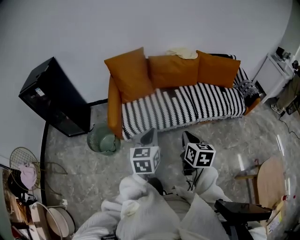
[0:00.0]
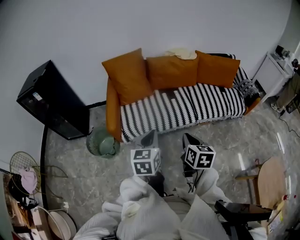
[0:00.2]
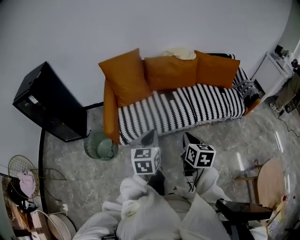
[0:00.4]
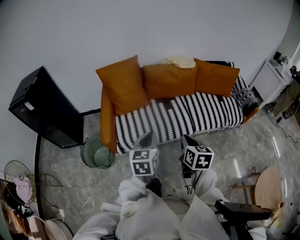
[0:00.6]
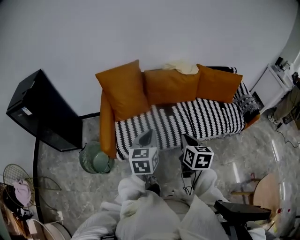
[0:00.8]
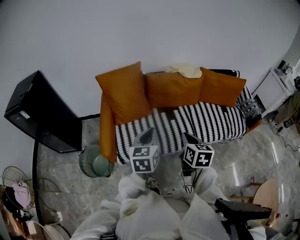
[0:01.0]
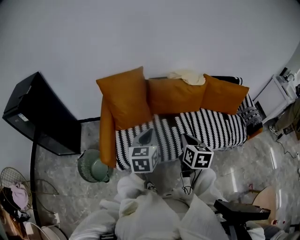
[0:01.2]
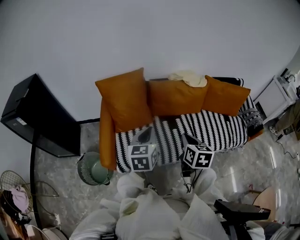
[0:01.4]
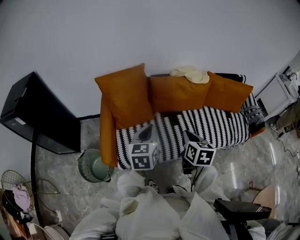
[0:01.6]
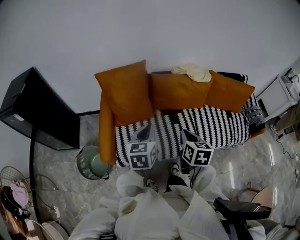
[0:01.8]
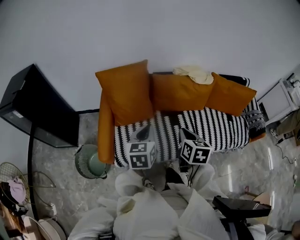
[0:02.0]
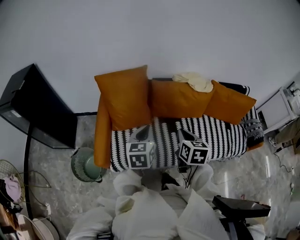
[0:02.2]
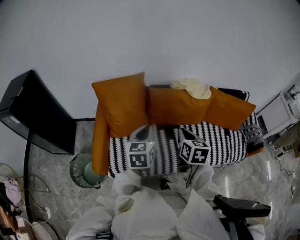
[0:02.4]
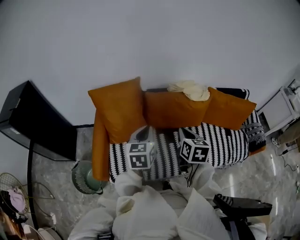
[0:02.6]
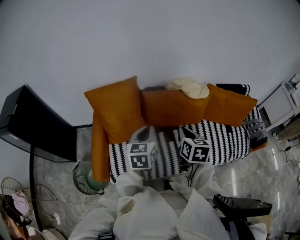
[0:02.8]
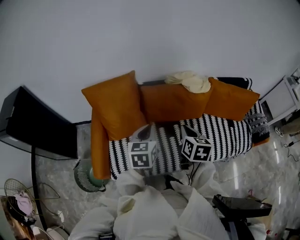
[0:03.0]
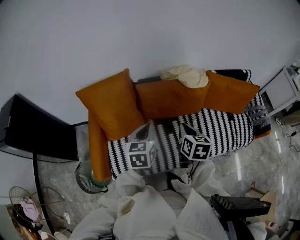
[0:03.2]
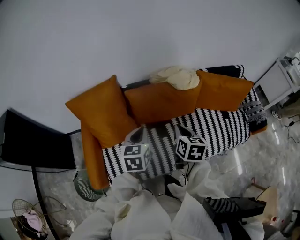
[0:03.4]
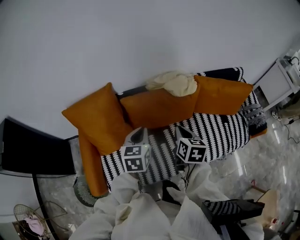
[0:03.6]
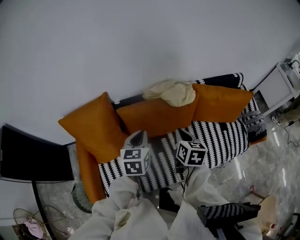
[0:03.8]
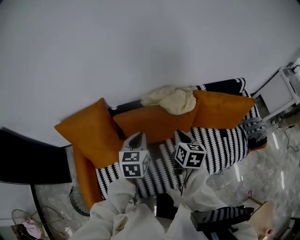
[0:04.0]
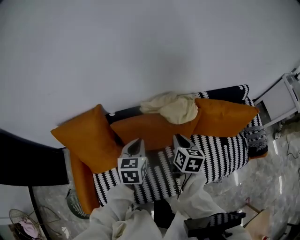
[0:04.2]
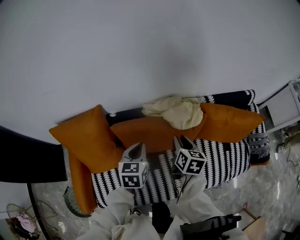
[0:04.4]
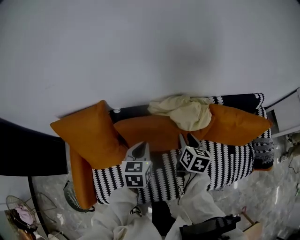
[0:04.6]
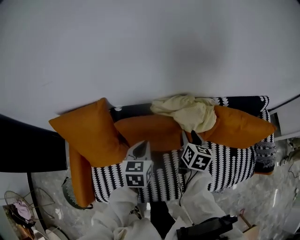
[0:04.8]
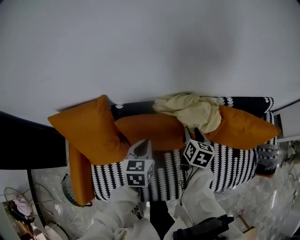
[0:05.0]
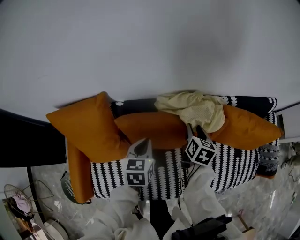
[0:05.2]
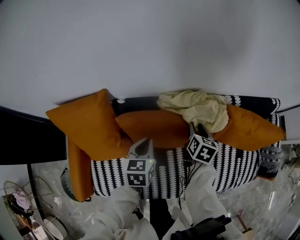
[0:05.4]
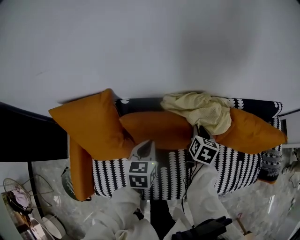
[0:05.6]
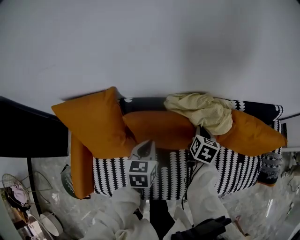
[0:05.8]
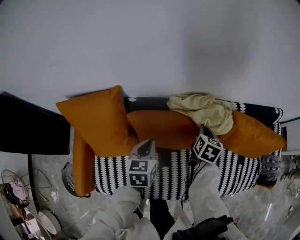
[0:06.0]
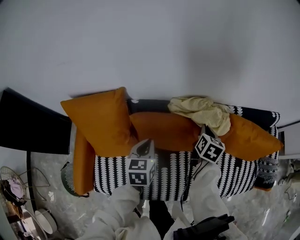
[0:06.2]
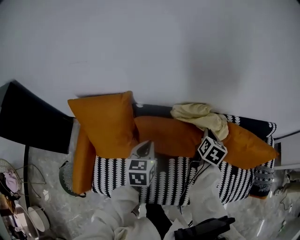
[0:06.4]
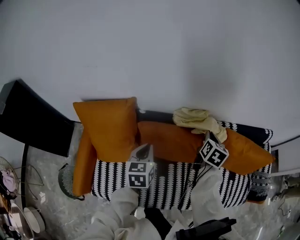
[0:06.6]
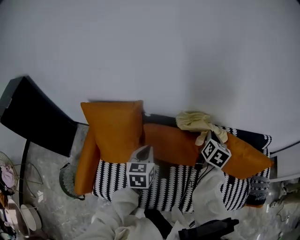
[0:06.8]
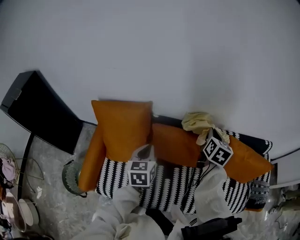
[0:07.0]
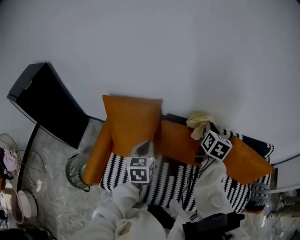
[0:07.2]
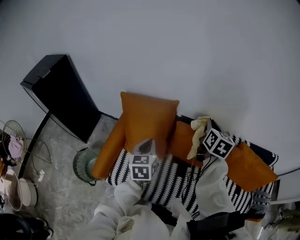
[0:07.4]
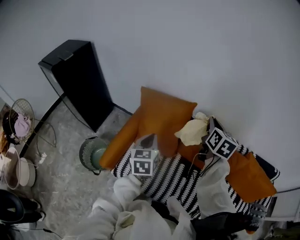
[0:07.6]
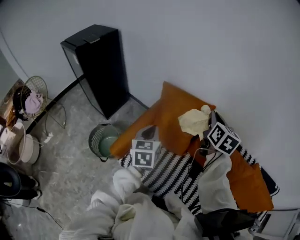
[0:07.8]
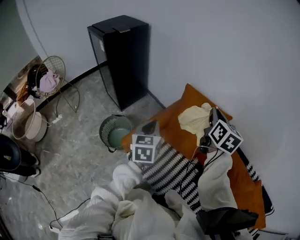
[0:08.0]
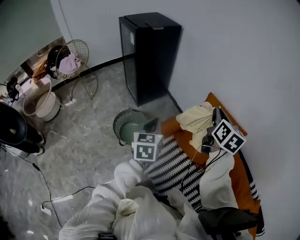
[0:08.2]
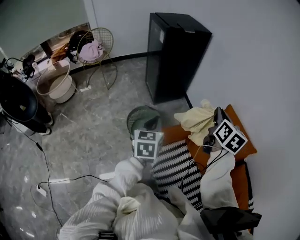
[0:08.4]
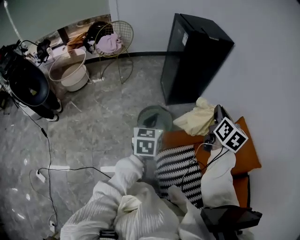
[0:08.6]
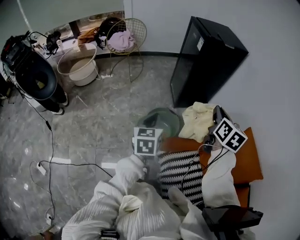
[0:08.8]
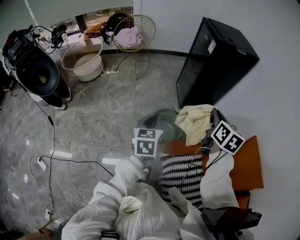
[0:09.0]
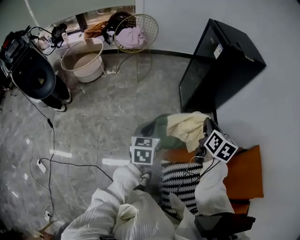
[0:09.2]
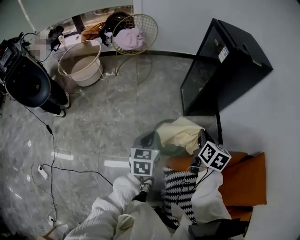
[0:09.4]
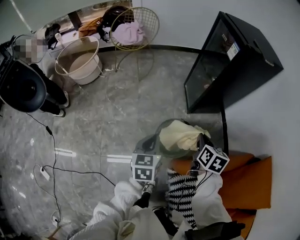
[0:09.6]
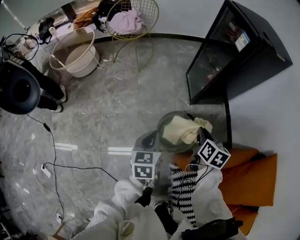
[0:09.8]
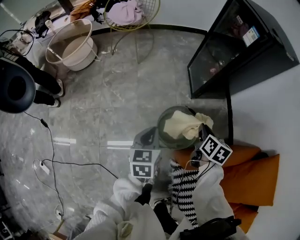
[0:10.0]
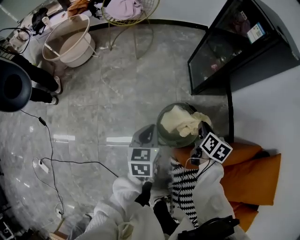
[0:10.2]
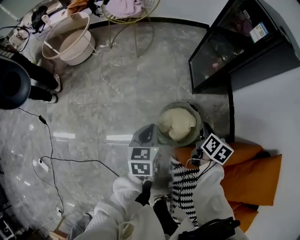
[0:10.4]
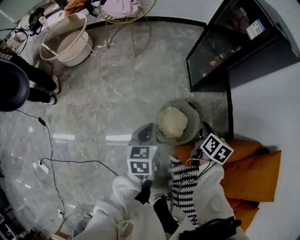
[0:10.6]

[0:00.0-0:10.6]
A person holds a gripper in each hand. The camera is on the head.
0:00.0 to 0:01.6: Both grippers move forward, some 35 cm.
0:01.6 to 0:03.0: The right gripper moves forward, roughly 15 cm; the left gripper is displaced forward and to the right by approximately 15 cm.
0:03.0 to 0:04.6: The two grippers go approximately 30 cm forward and downward. The right gripper opens.
0:04.6 to 0:06.0: The right gripper shifts some 10 cm forward and downward, and closes; the left gripper ends up roughly 5 cm from where it was.
0:06.0 to 0:07.6: The right gripper moves roughly 40 cm, and swivels about 40 degrees. Meanwhile the left gripper moves approximately 35 cm, and changes its angle by about 30 degrees.
0:07.6 to 0:09.0: Both grippers are carried about 60 cm. The left gripper turns by roughly 60 degrees. The right gripper changes its angle by some 60 degrees.
0:09.0 to 0:10.6: The right gripper heads downward, covering roughly 30 cm, and changes its angle by roughly 20 degrees, while the left gripper travels downward and forward by about 20 cm.

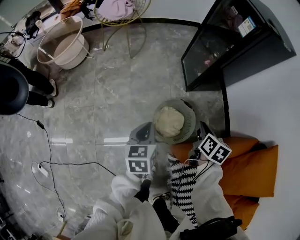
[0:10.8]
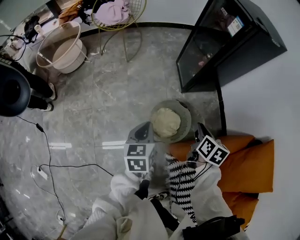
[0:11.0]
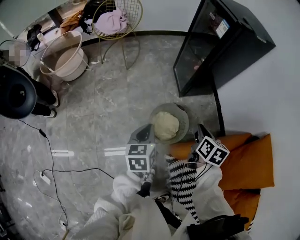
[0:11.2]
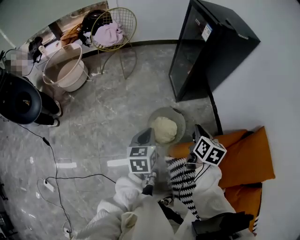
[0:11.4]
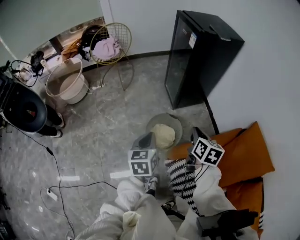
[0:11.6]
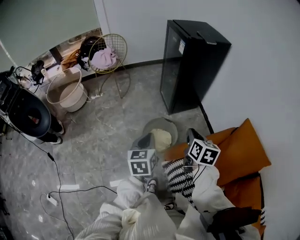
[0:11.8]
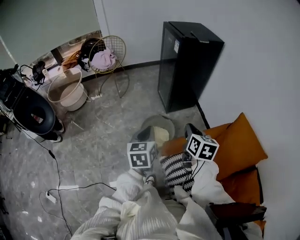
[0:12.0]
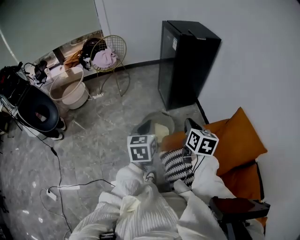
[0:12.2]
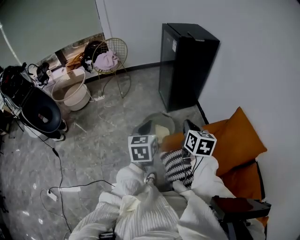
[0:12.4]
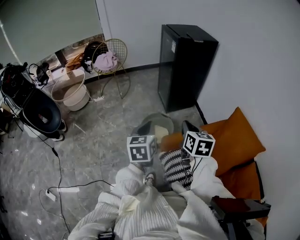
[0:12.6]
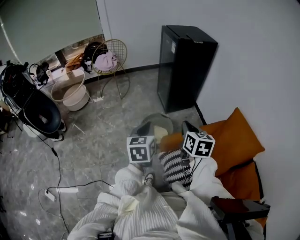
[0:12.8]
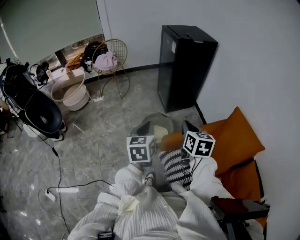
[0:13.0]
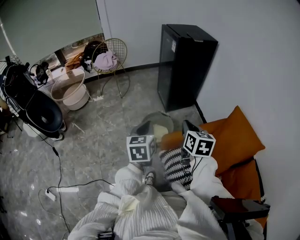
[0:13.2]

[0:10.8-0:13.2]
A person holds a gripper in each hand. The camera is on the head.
0:10.8 to 0:12.0: The left gripper goes about 30 cm upward, backward and to the right; the right gripper is displaced upward and backward by approximately 30 cm.
0:12.0 to 0:13.2: Both grippers travel together backward, approximately 5 cm.

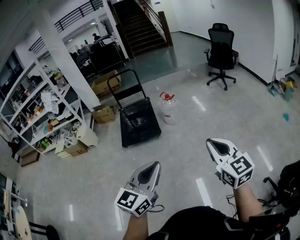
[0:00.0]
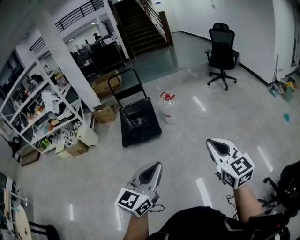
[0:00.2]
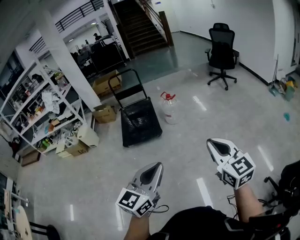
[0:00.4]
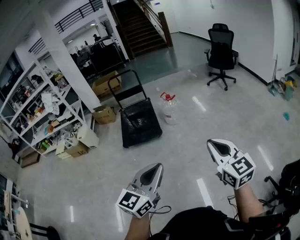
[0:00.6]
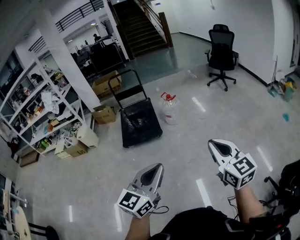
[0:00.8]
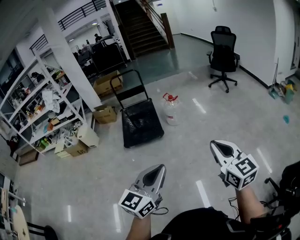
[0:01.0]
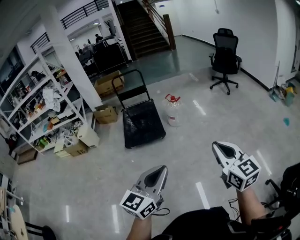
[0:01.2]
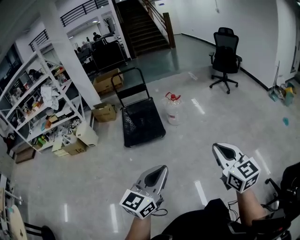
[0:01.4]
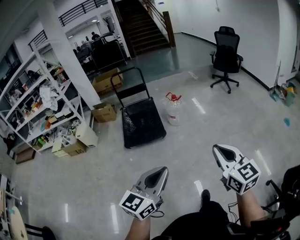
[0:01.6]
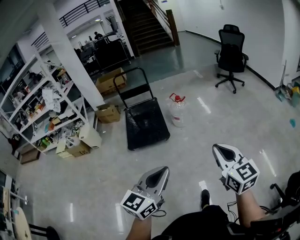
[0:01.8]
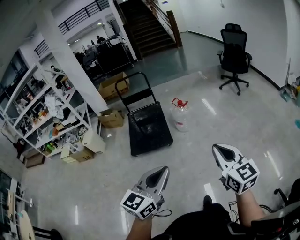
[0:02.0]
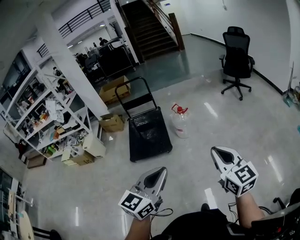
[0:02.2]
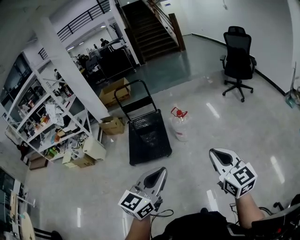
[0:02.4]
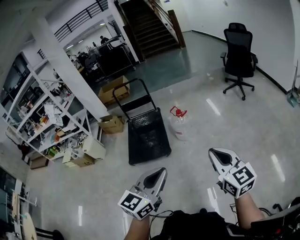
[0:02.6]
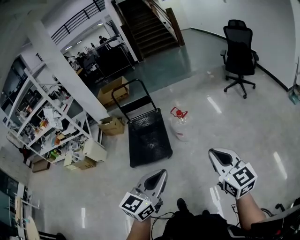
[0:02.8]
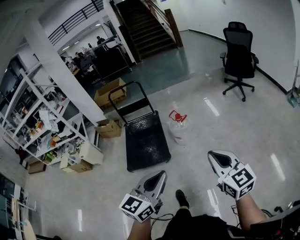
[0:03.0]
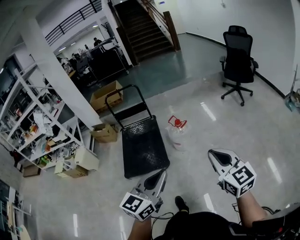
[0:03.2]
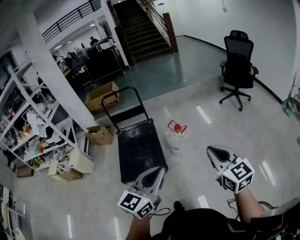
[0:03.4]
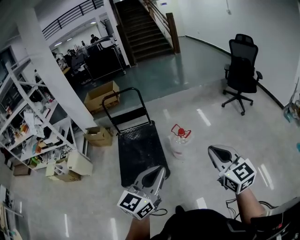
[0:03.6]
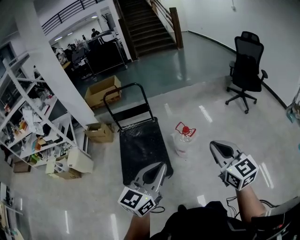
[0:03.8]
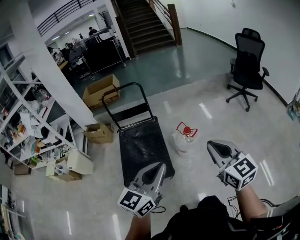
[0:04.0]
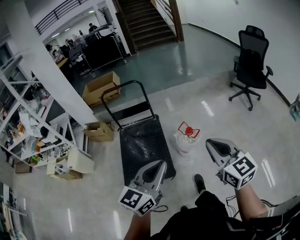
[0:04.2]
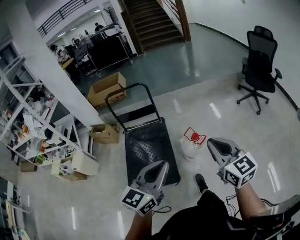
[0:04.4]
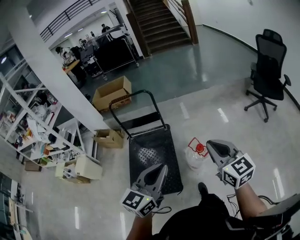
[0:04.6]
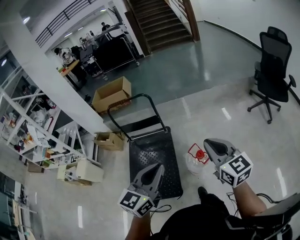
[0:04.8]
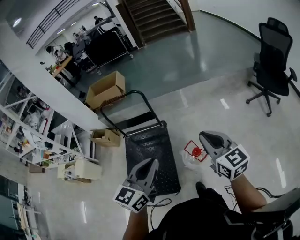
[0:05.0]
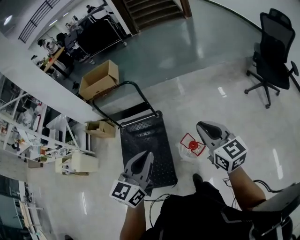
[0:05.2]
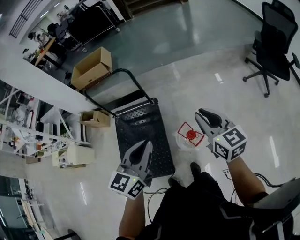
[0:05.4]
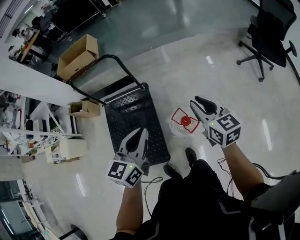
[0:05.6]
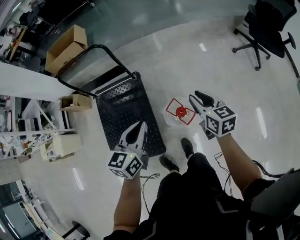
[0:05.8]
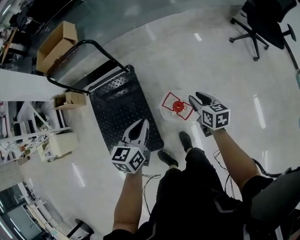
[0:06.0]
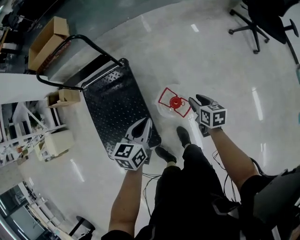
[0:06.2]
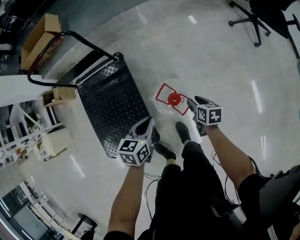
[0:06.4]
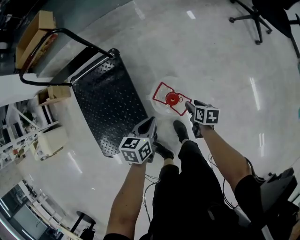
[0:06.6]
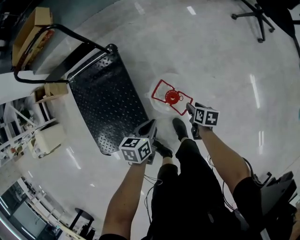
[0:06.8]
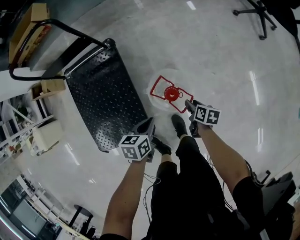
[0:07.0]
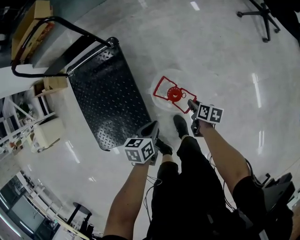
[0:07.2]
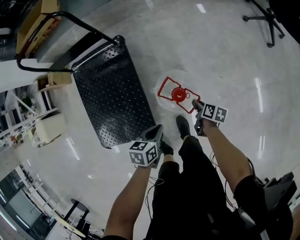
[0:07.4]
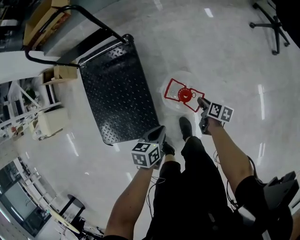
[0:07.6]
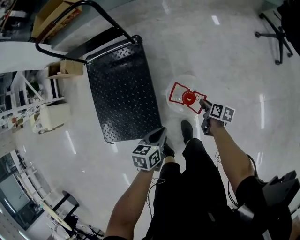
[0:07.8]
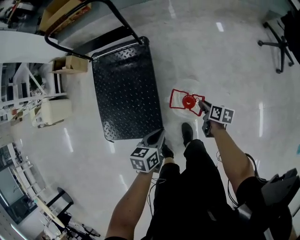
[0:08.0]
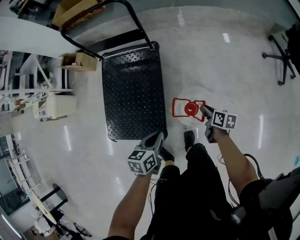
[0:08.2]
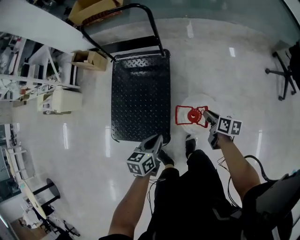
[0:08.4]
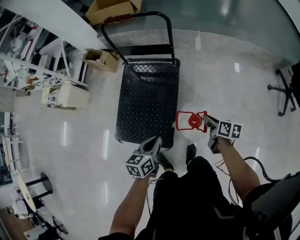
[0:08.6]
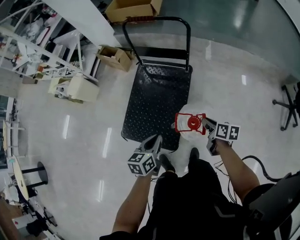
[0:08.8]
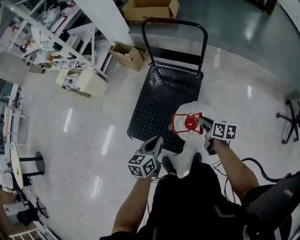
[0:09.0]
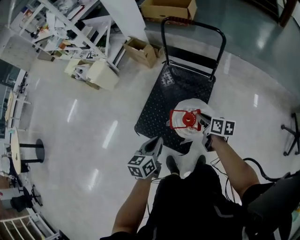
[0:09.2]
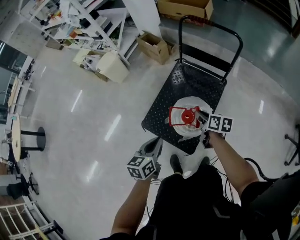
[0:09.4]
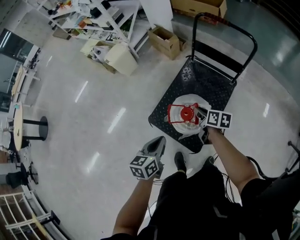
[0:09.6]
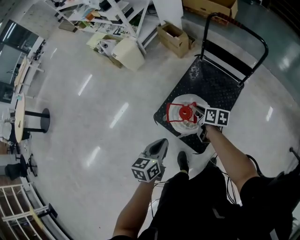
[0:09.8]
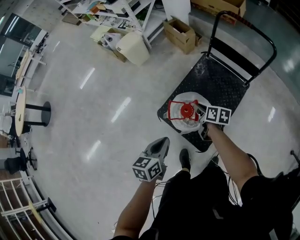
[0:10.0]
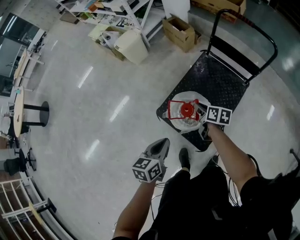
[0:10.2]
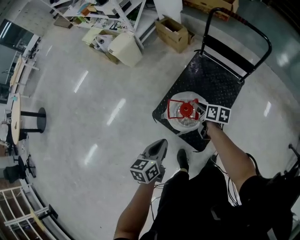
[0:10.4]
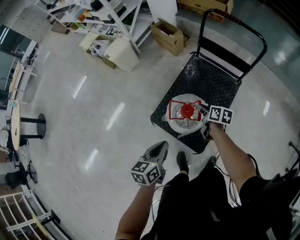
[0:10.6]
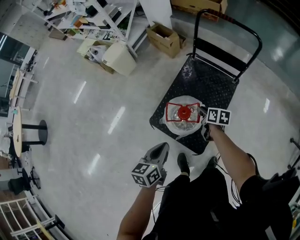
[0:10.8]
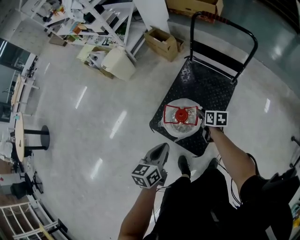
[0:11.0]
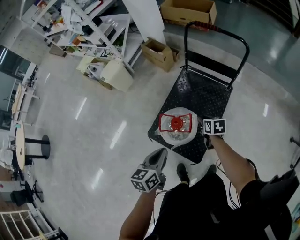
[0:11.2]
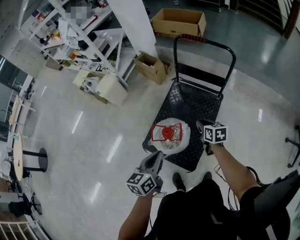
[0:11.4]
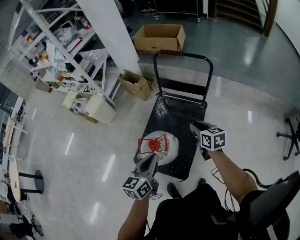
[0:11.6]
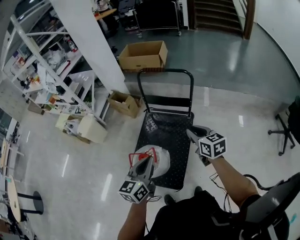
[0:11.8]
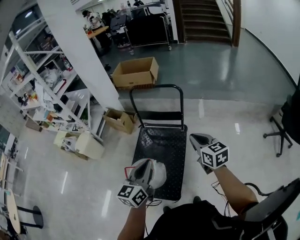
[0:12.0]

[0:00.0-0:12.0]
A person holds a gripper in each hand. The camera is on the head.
0:00.0 to 0:01.6: The two grippers go approximately 10 cm to the left.
0:01.6 to 0:03.0: Both grippers move forward, about 35 cm.
0:03.0 to 0:04.4: The pair of grippers is taken forward and to the left, some 50 cm.
0:04.4 to 0:06.0: Both grippers move forward and downward, some 50 cm. The left gripper rotates about 30 degrees. The right gripper points its fingers about 30 degrees further downward, and opens its fingers.
0:06.0 to 0:07.6: The grippers both shift downward by roughly 25 cm. The left gripper rotates roughly 30 degrees. Meanwhile the right gripper swivels some 40 degrees.
0:07.6 to 0:09.0: The left gripper shifts by approximately 35 cm, and rotates about 40 degrees. The right gripper ends up about 40 cm from where it was, and turns by some 50 degrees.
0:09.0 to 0:10.4: The right gripper is displaced to the left and forward by about 35 cm. Meanwhile the left gripper is displaced to the left by some 25 cm.
0:10.4 to 0:12.0: Both grippers travel together to the right and upward, about 40 cm. The left gripper changes its angle by about 40 degrees. The right gripper turns by about 40 degrees.
